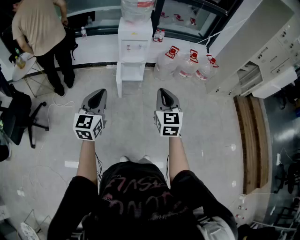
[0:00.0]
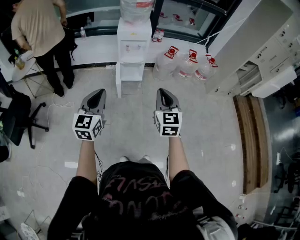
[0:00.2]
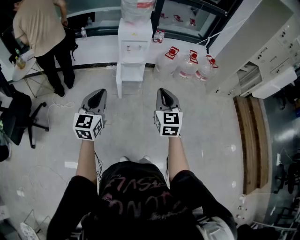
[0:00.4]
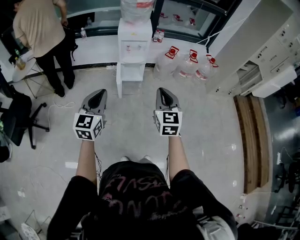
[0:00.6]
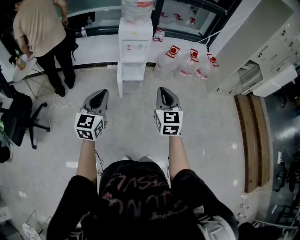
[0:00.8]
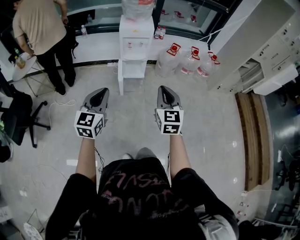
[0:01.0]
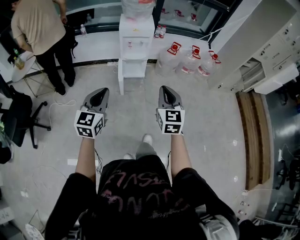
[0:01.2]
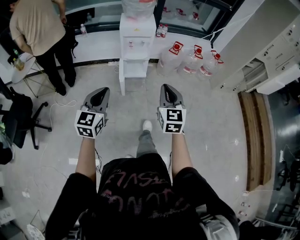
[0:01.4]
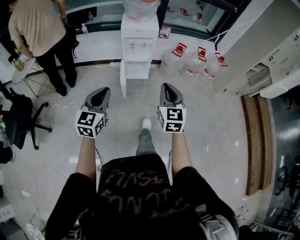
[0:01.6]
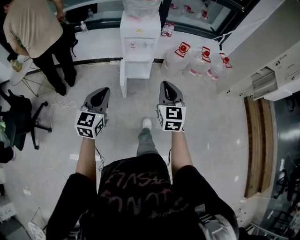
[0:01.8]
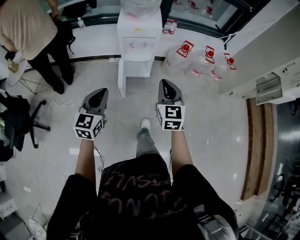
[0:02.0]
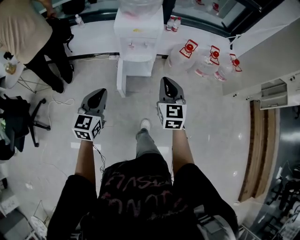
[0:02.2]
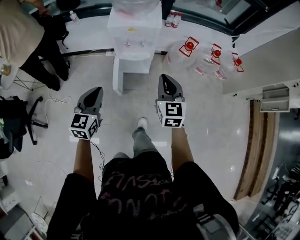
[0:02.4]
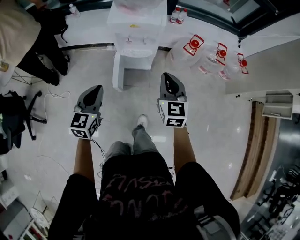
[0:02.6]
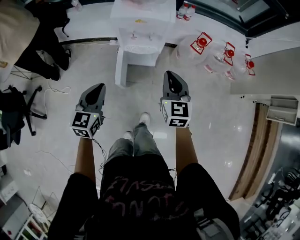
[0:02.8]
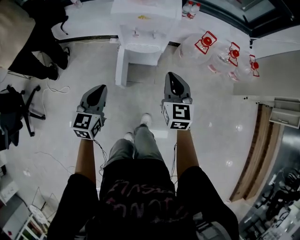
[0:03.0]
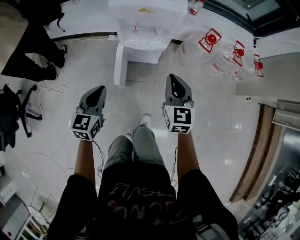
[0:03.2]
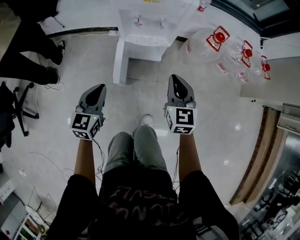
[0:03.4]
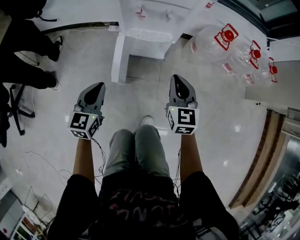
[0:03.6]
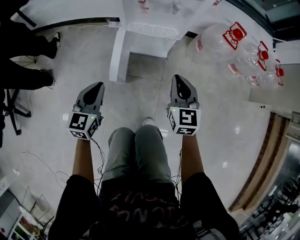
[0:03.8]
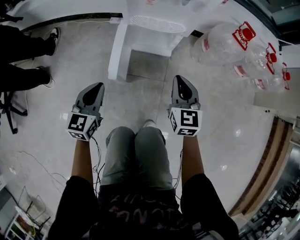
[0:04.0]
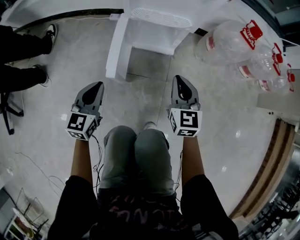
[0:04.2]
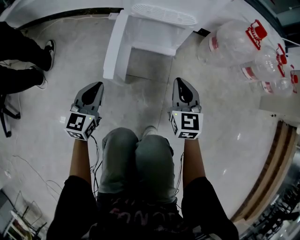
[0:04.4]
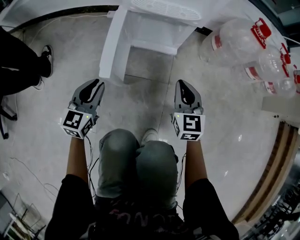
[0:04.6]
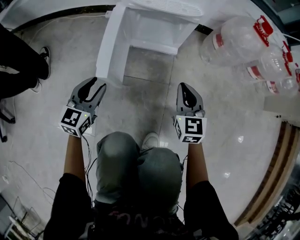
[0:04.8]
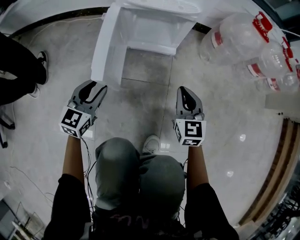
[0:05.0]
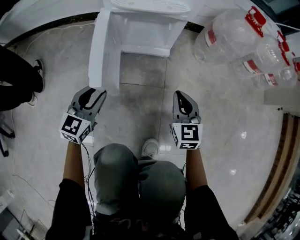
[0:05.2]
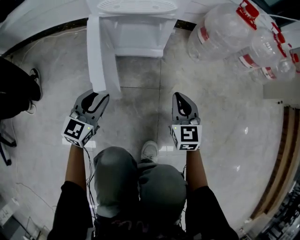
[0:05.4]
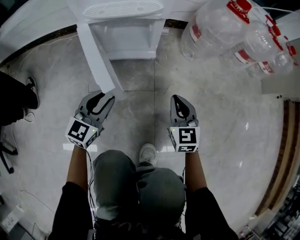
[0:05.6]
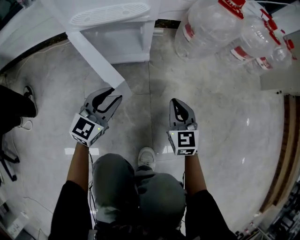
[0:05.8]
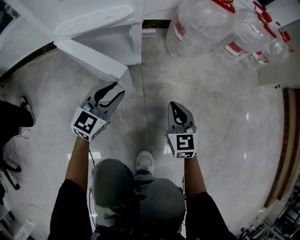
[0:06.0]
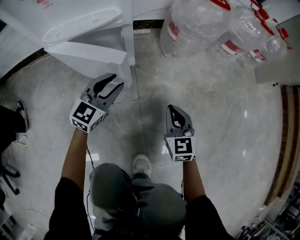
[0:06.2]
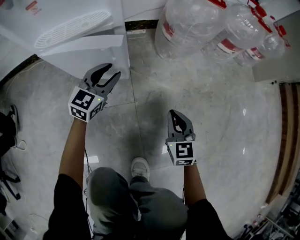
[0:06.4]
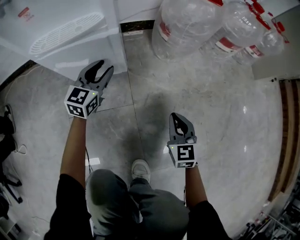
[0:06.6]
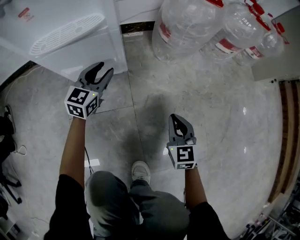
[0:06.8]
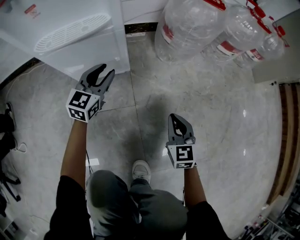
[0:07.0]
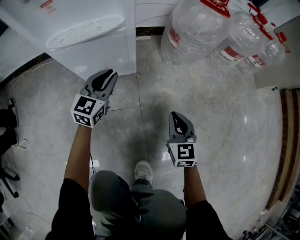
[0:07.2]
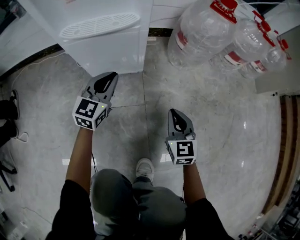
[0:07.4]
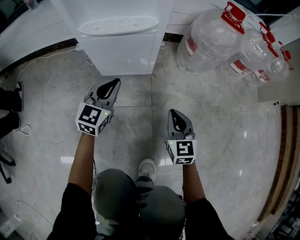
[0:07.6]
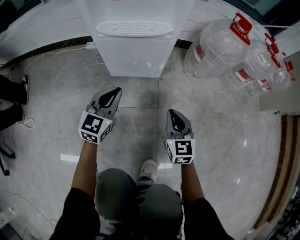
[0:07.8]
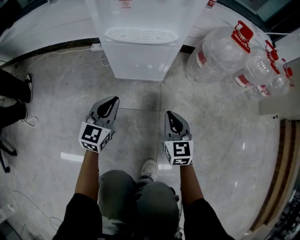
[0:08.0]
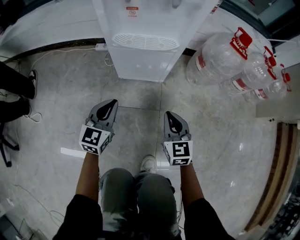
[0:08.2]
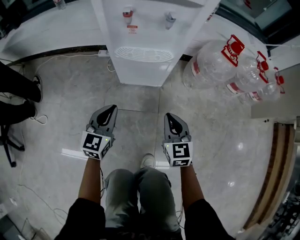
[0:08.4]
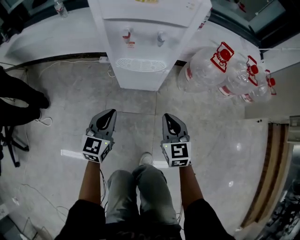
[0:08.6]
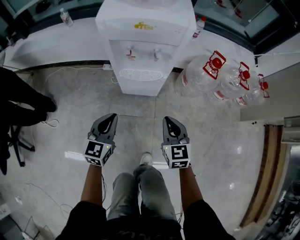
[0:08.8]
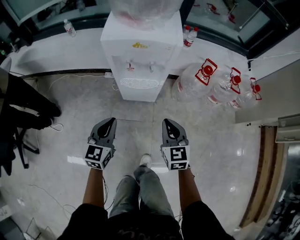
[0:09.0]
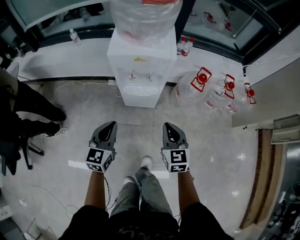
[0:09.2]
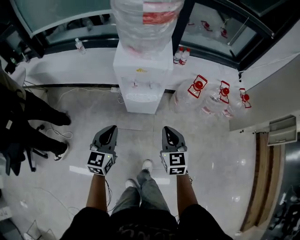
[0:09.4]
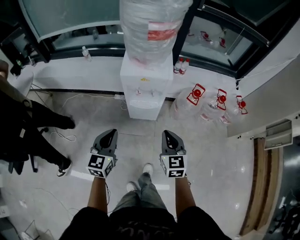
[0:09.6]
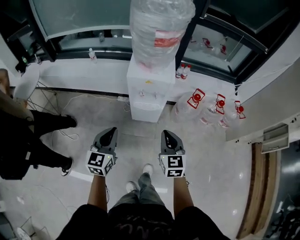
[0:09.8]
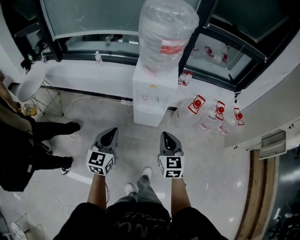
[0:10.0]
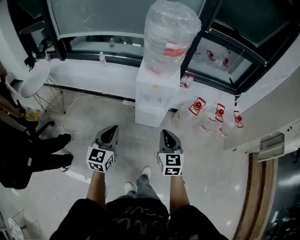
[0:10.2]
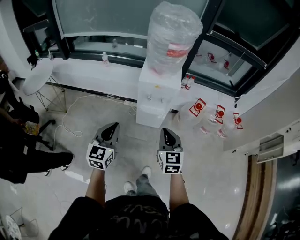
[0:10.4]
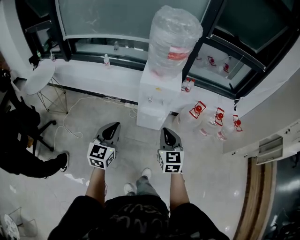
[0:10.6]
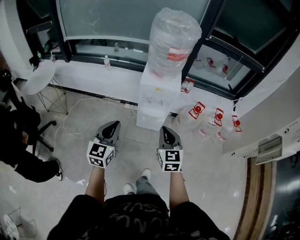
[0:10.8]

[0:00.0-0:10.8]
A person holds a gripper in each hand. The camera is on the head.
0:00.0 to 0:01.6: The grippers both shift forward by roughly 10 cm.
0:01.6 to 0:03.0: Both grippers travel together forward and downward, approximately 40 cm.
0:03.0 to 0:04.6: Both grippers travel together downward, roughly 50 cm.
0:04.6 to 0:06.2: The right gripper is displaced to the right and downward by roughly 20 cm. The left gripper travels to the right and forward by roughly 30 cm, and turns by some 30 degrees.
0:06.2 to 0:07.8: The left gripper shifts some 15 cm to the left and backward, turns by about 20 degrees, and closes. The right gripper goes some 10 cm to the left.
0:07.8 to 0:09.2: Both grippers move upward, approximately 50 cm.
0:09.2 to 0:10.8: The grippers both shift upward and backward by roughly 30 cm.

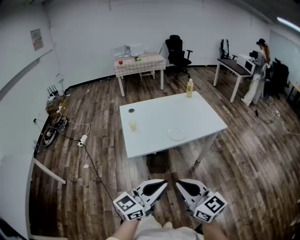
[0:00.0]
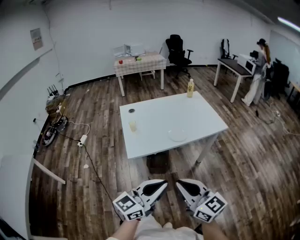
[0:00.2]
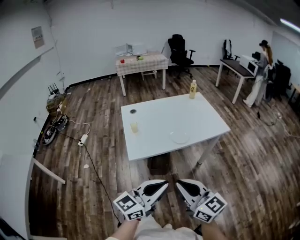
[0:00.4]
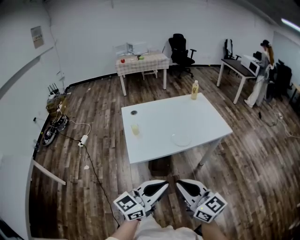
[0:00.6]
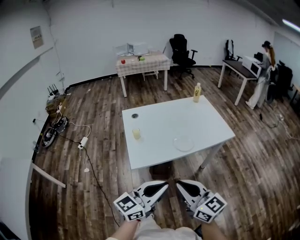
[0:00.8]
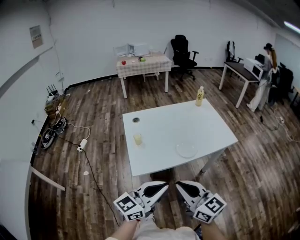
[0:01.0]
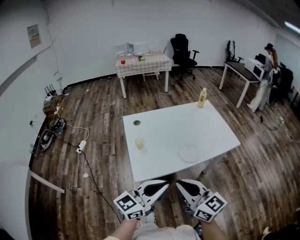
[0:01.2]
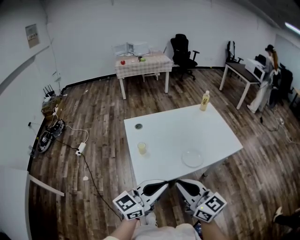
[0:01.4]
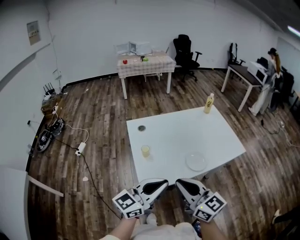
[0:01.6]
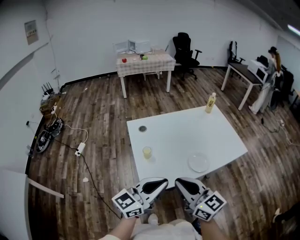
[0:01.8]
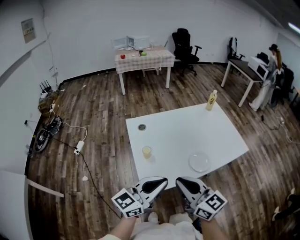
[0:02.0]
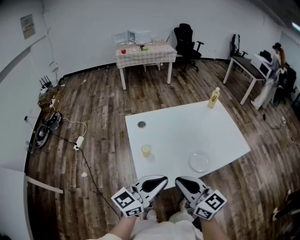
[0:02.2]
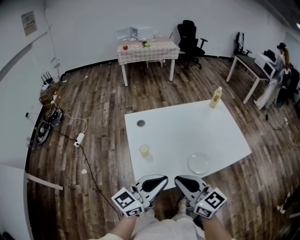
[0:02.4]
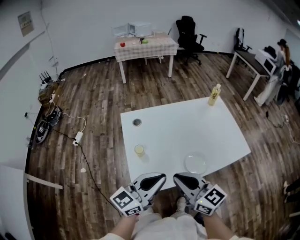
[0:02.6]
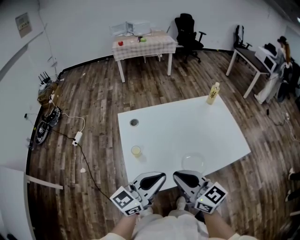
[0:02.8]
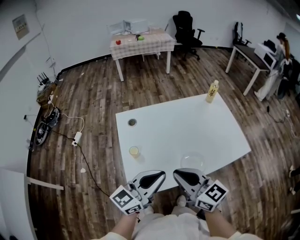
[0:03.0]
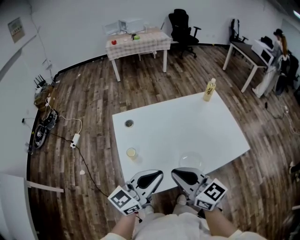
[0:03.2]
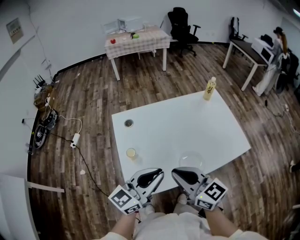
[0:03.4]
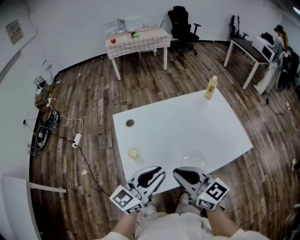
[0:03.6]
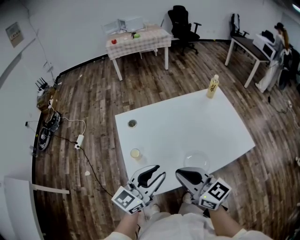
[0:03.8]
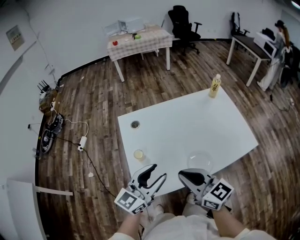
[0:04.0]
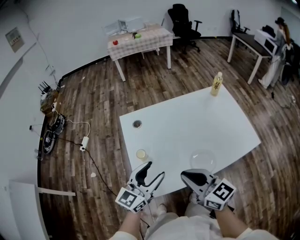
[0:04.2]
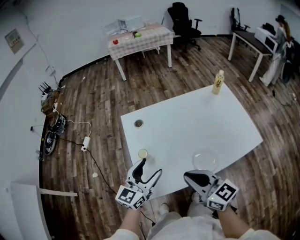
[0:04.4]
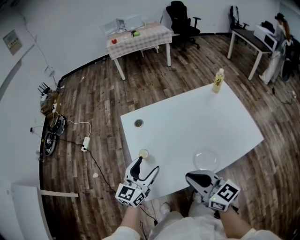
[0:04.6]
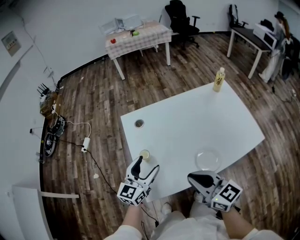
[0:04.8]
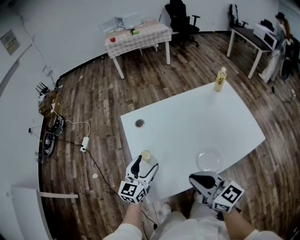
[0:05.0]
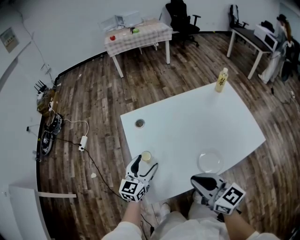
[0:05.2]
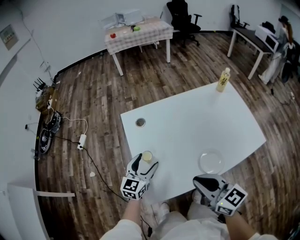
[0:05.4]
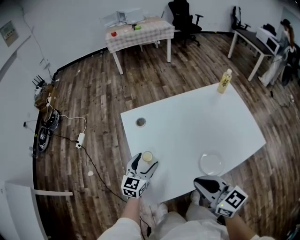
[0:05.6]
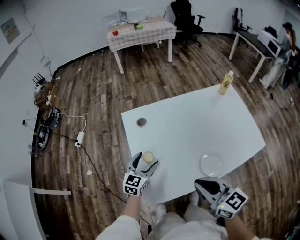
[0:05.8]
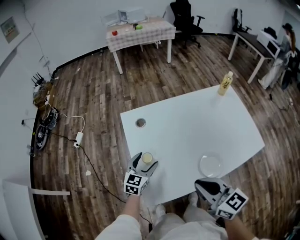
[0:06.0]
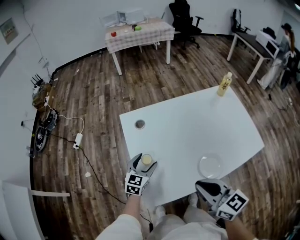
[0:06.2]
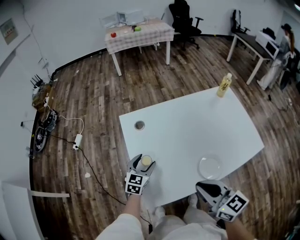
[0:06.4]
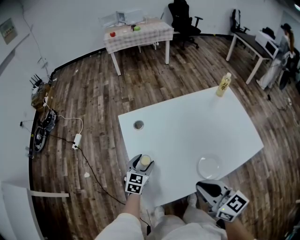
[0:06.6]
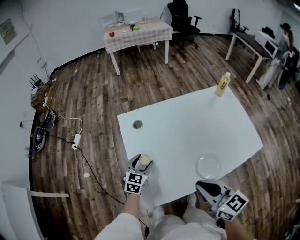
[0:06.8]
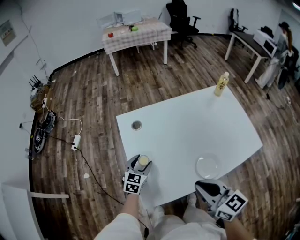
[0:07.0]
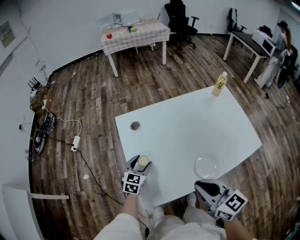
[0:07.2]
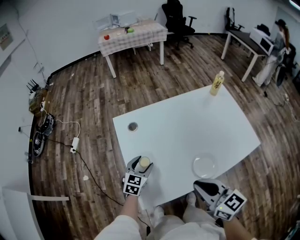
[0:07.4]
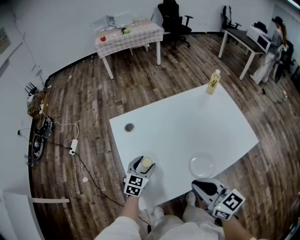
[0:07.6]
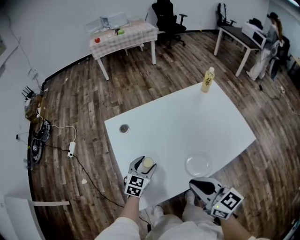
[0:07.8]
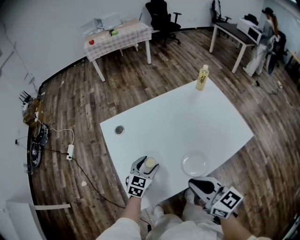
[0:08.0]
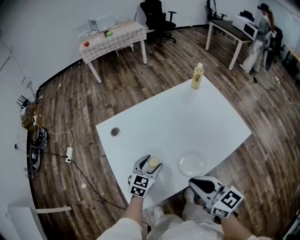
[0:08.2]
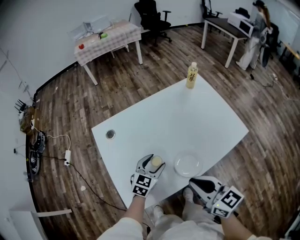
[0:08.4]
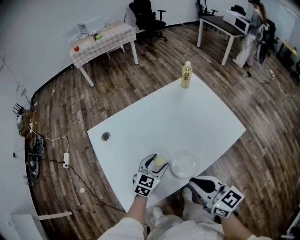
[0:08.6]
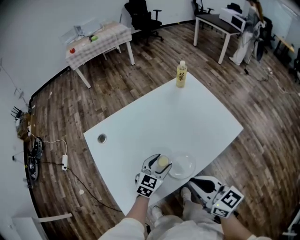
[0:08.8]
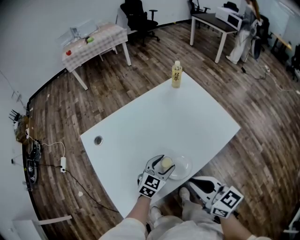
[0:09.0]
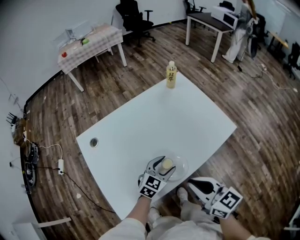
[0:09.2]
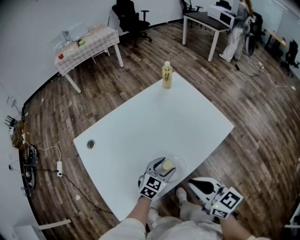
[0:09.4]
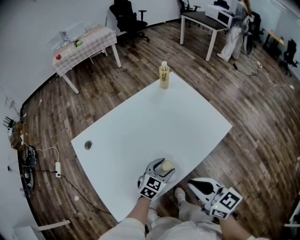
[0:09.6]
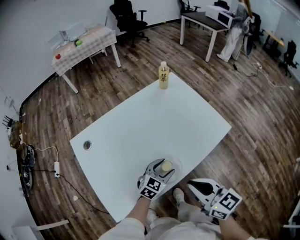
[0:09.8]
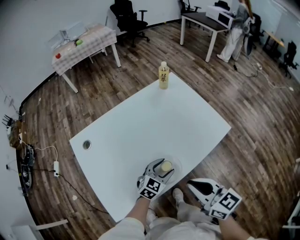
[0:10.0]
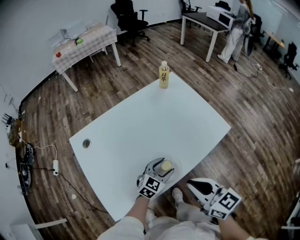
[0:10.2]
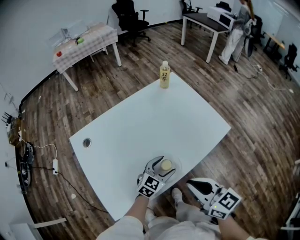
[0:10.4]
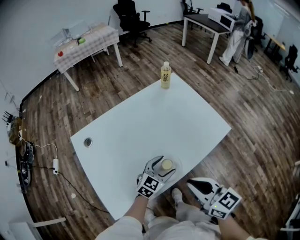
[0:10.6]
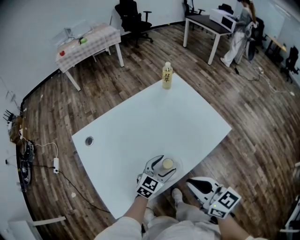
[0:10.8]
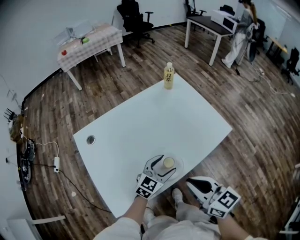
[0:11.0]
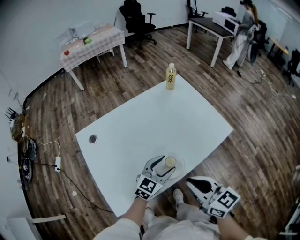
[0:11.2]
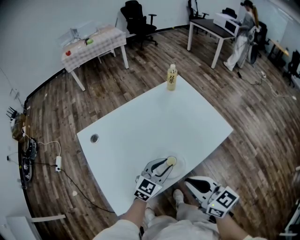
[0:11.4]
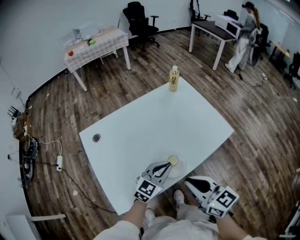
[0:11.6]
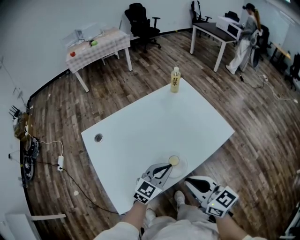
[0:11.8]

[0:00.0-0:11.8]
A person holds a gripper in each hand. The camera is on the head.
0:00.0 to 0:01.4: Both grippers travel together forward and to the left, about 25 cm.
0:01.4 to 0:03.0: The grippers both shift forward by approximately 15 cm.
0:03.0 to 0:04.4: The left gripper goes some 15 cm to the left, downward and forward, changes its angle by some 20 degrees, and opens its fingers.
0:04.4 to 0:06.0: The left gripper shifts roughly 20 cm downward and forward, and changes its angle by roughly 20 degrees.
0:06.0 to 0:07.4: The grippers make only small movements.
0:07.4 to 0:08.8: The left gripper shifts roughly 25 cm to the right, and turns by about 20 degrees; the right gripper shifts some 10 cm to the right.
0:08.8 to 0:10.4: The left gripper goes some 10 cm to the right. Meanwhile the right gripper is displaced to the right by approximately 5 cm.
0:10.4 to 0:11.8: The left gripper shifts some 10 cm upward, and closes its fingers.

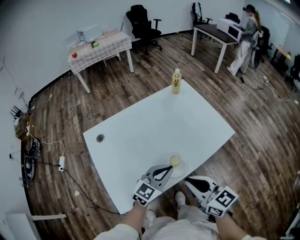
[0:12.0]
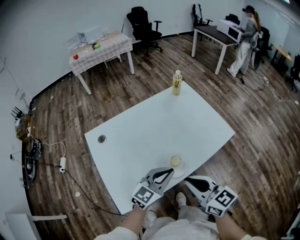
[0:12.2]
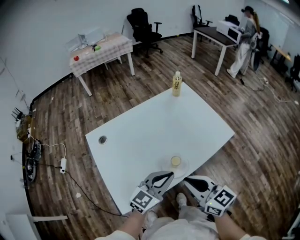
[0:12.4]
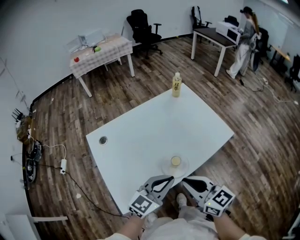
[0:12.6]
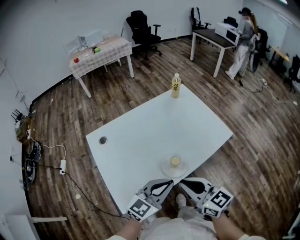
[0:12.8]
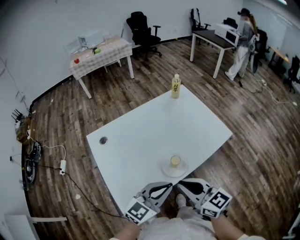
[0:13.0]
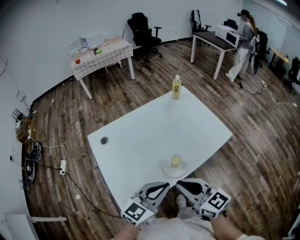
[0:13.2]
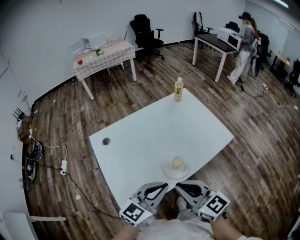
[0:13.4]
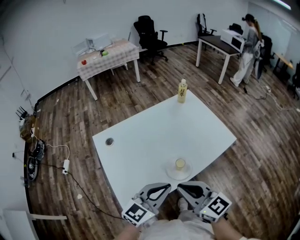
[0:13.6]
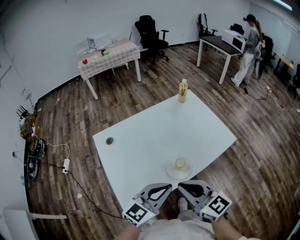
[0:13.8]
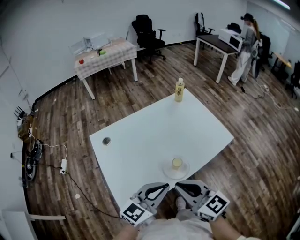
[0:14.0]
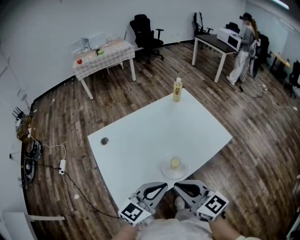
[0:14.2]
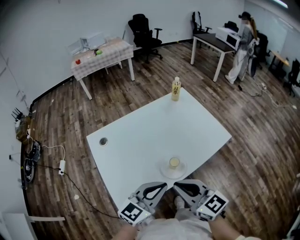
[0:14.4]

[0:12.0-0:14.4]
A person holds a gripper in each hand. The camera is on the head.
0:12.0 to 0:13.2: The left gripper goes about 10 cm backward and upward; the right gripper changes place by roughly 5 cm.
0:13.2 to 0:14.4: There are only small adjustments of the grippers.
